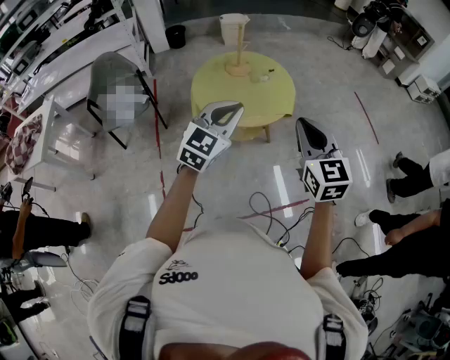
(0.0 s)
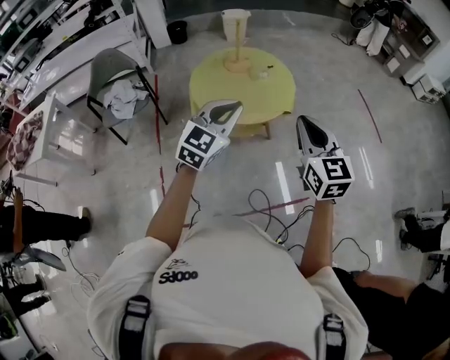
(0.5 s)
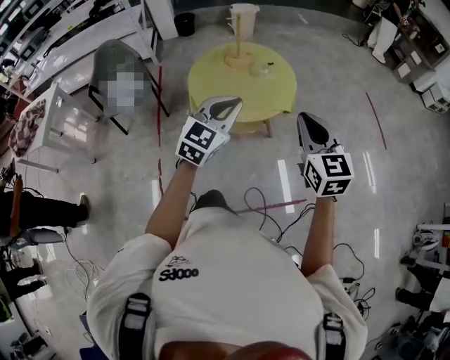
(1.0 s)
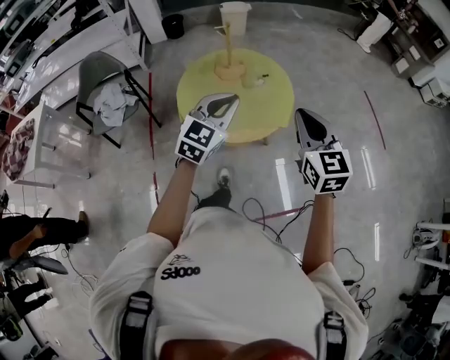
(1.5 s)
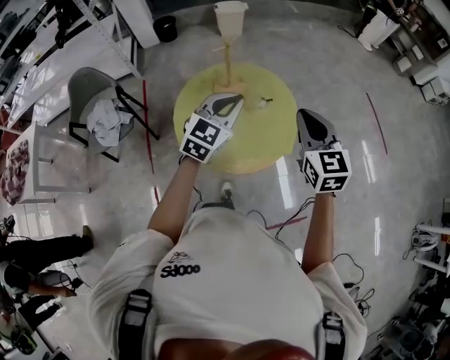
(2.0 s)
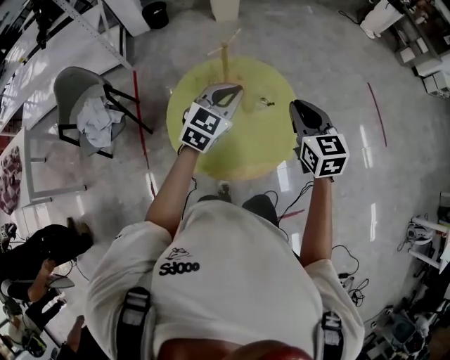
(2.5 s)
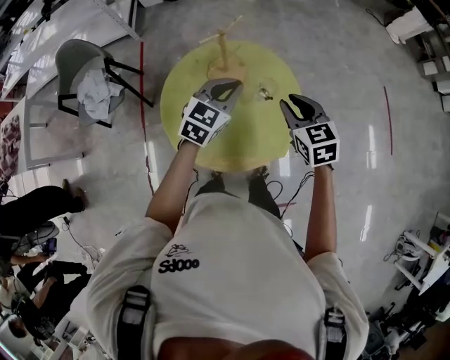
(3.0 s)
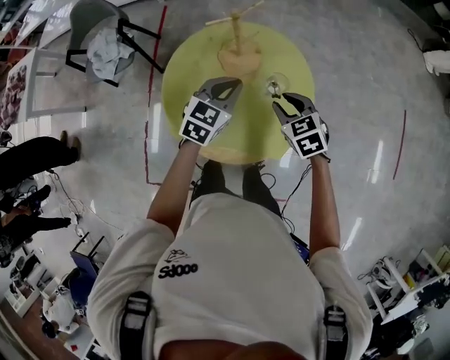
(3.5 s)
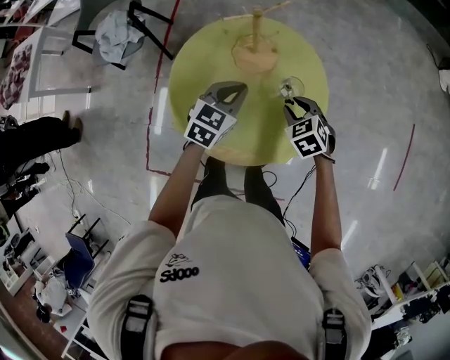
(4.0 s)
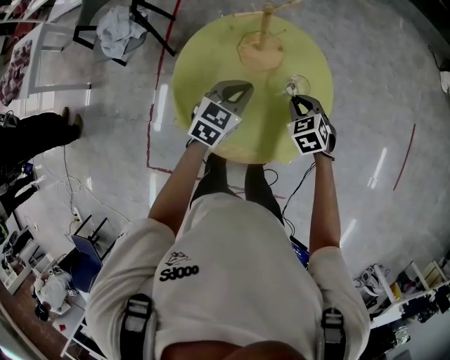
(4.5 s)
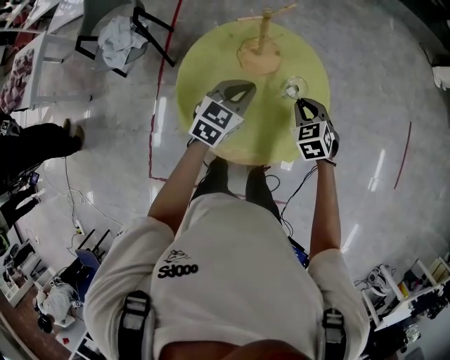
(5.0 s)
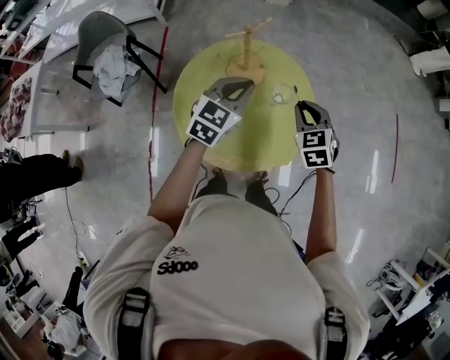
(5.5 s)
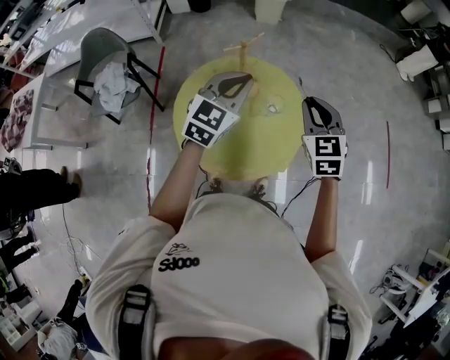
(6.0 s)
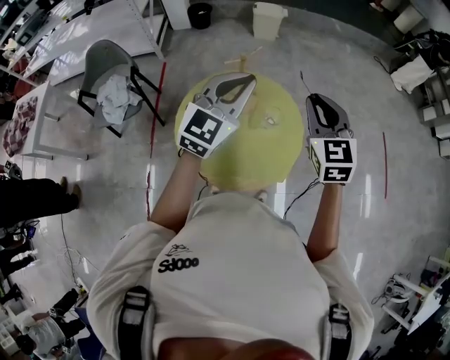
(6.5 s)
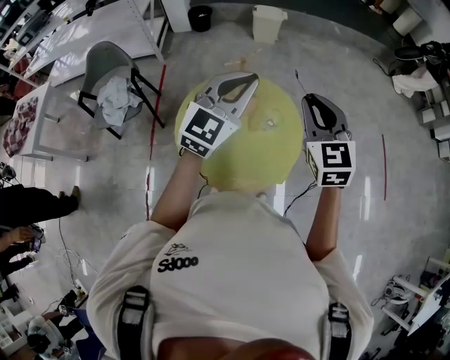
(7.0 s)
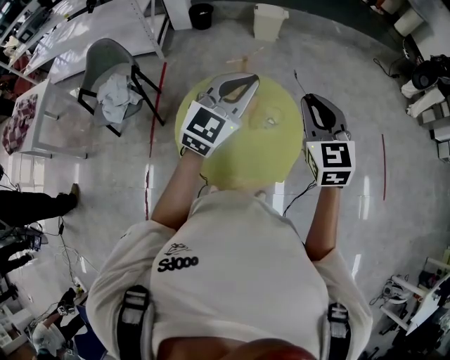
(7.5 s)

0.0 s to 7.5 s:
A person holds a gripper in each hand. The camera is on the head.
0.0 to 2.0 s: The two grippers go approximately 35 cm forward.
2.0 to 4.0 s: The right gripper goes about 30 cm downward, tips its fingers downward by some 40 degrees, and opens. The left gripper moves downward, approximately 20 cm, and turns by roughly 40 degrees.
4.0 to 5.5 s: The grippers both shift upward by some 15 cm. The right gripper rotates approximately 30 degrees.
5.5 to 7.5 s: Both grippers move upward, about 20 cm. The right gripper changes its angle by some 20 degrees. The left gripper rotates some 20 degrees.

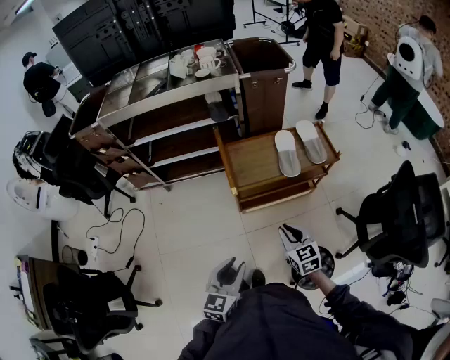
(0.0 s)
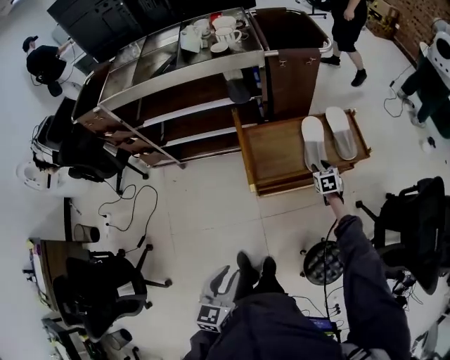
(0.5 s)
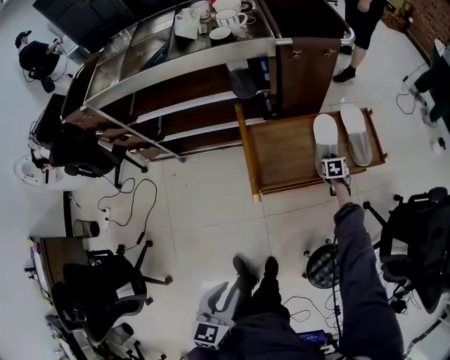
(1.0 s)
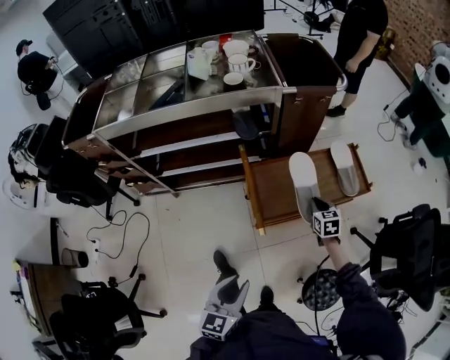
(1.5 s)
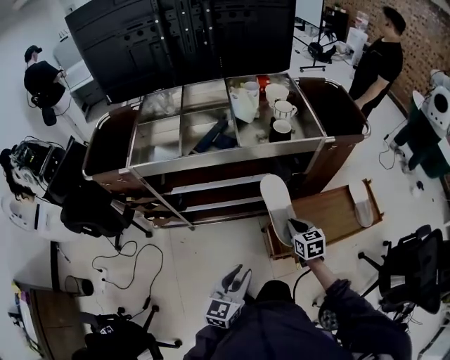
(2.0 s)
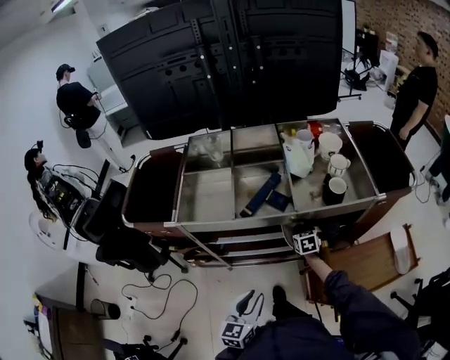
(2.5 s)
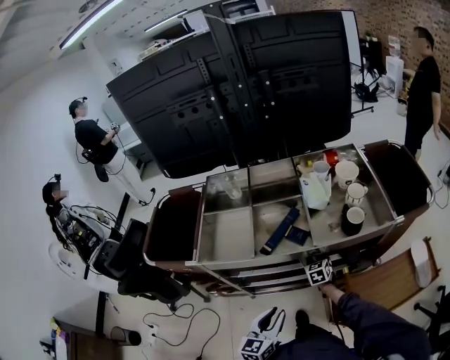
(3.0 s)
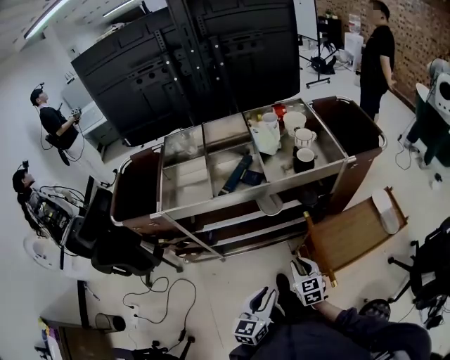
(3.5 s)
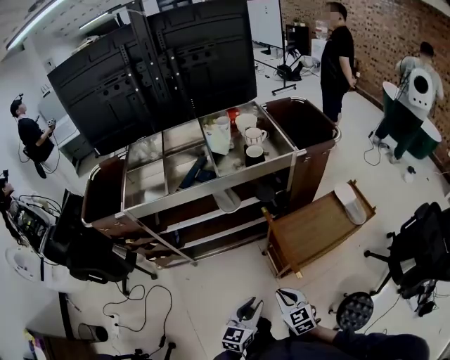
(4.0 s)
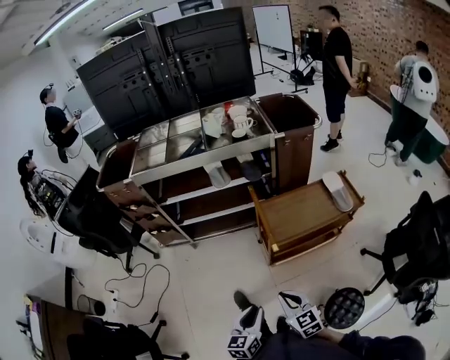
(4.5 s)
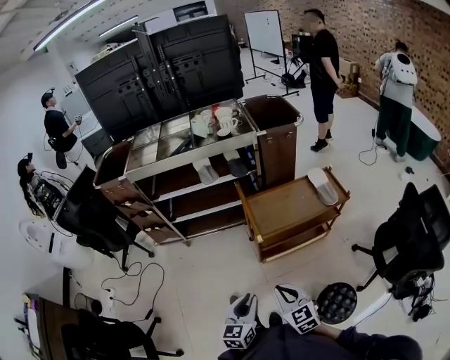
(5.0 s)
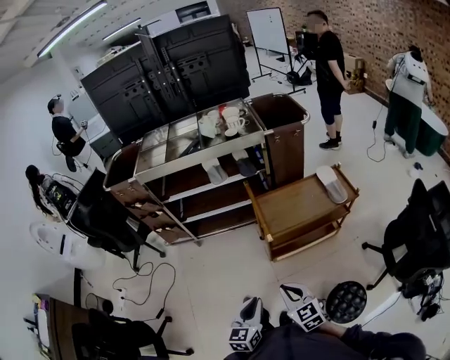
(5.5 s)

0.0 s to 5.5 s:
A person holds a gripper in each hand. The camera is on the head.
0.0 to 2.0 s: The pair of grippers is taken forward and to the left, approximately 40 cm. The right gripper opens, then closes once more.
2.0 to 3.5 s: The right gripper goes about 10 cm to the left, and travels forward and back again, about 25 cm each way. Meanwhile the left gripper heads to the left, covering roughly 5 cm, and reaches some 20 cm forward, then returns.
3.5 to 5.5 s: The pair of grippers is taken backward and to the right, some 40 cm.

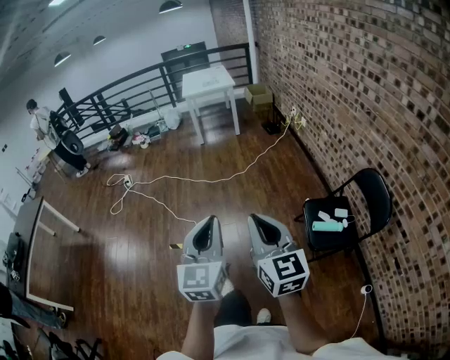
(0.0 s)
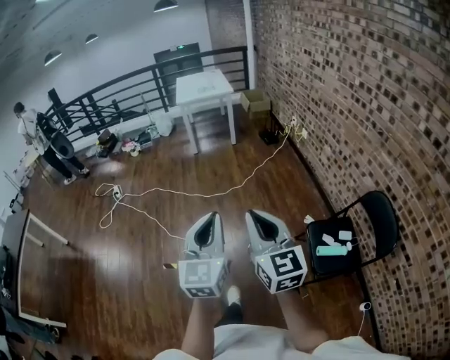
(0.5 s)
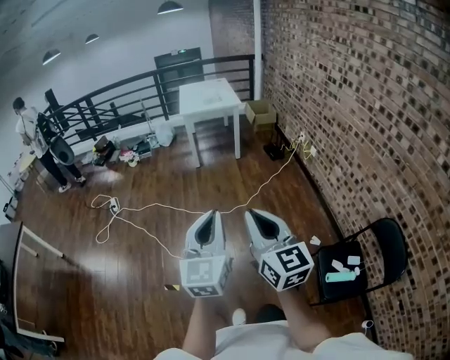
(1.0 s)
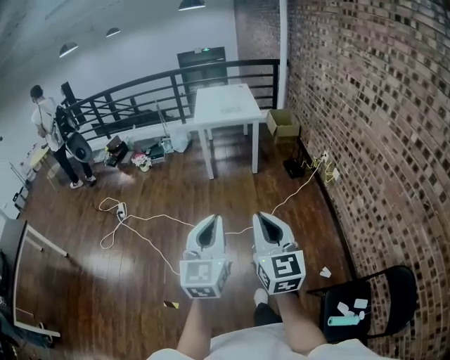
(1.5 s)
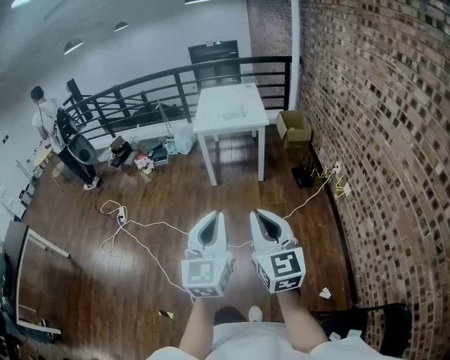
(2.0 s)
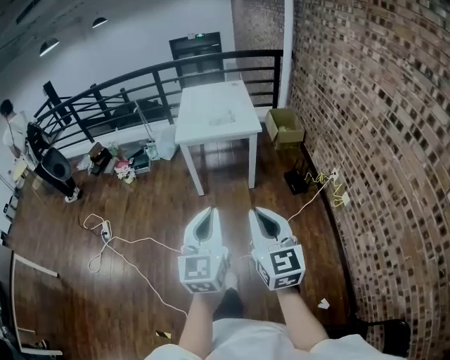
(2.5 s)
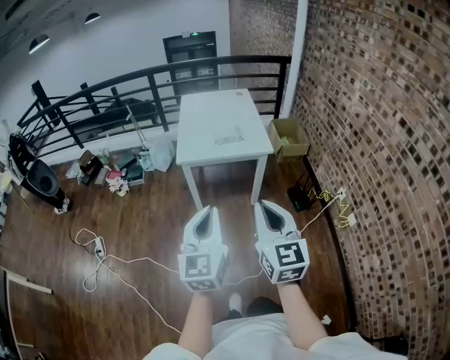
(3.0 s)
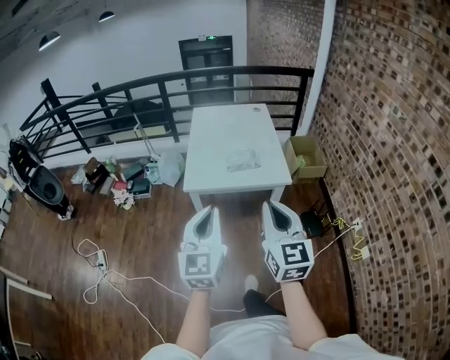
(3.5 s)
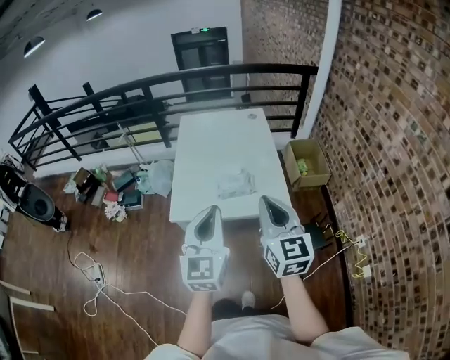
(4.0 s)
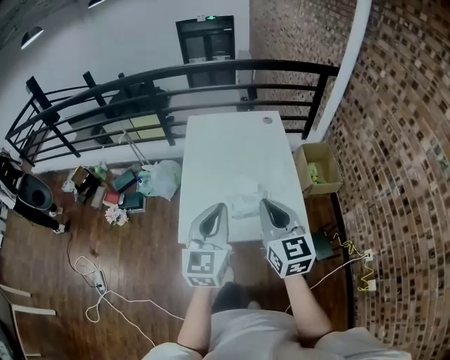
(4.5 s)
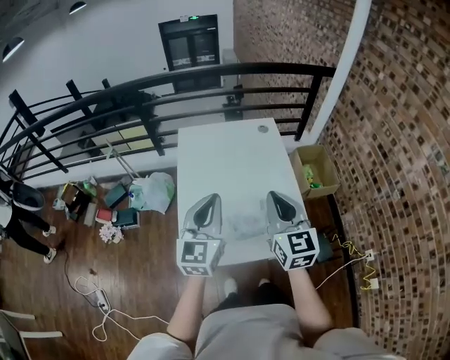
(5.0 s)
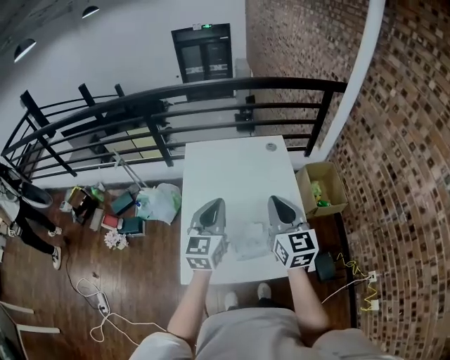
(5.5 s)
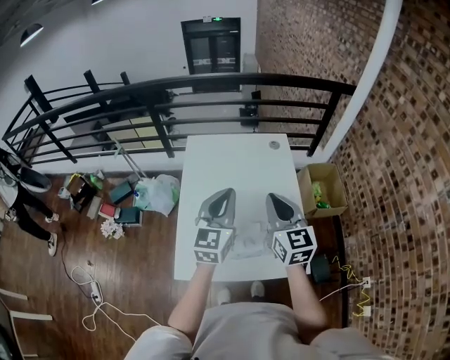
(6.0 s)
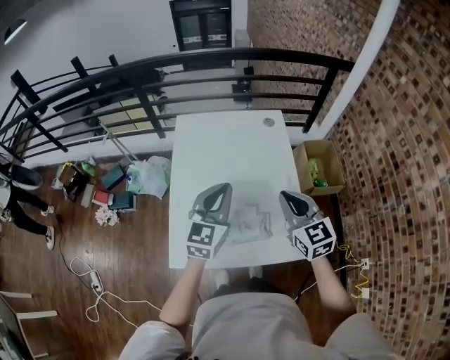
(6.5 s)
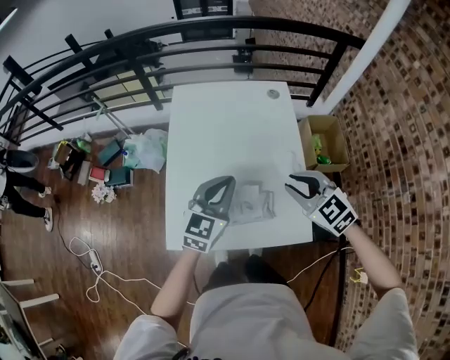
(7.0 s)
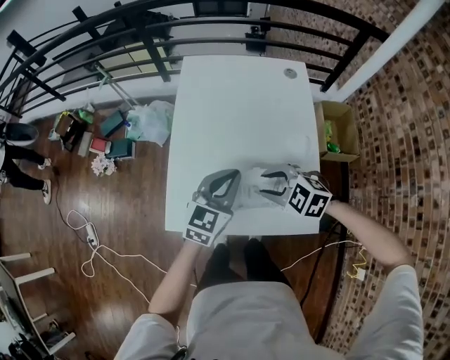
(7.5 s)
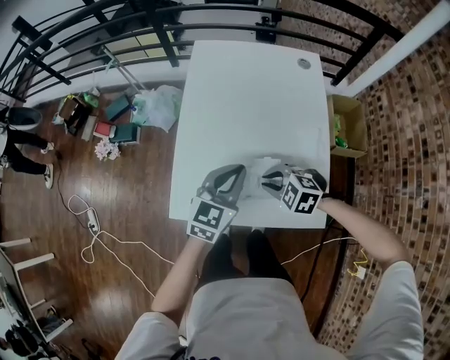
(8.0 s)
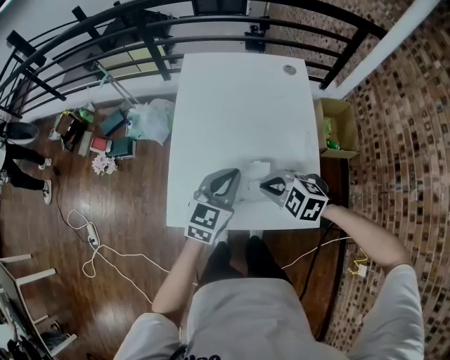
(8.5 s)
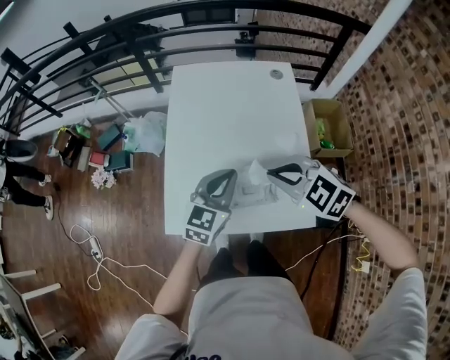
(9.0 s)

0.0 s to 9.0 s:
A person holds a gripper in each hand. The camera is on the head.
0.0 to 2.0 s: Both grippers are carried forward, about 80 cm.
2.0 to 4.5 s: Both grippers are carried forward, about 1 m.
4.5 to 7.0 s: The right gripper goes some 20 cm forward, downward and to the right, and swivels approximately 50 degrees. The left gripper shifts about 25 cm forward and downward.
7.0 to 9.0 s: The right gripper heads to the left, covering about 10 cm, and moves some 15 cm downward and comes back.

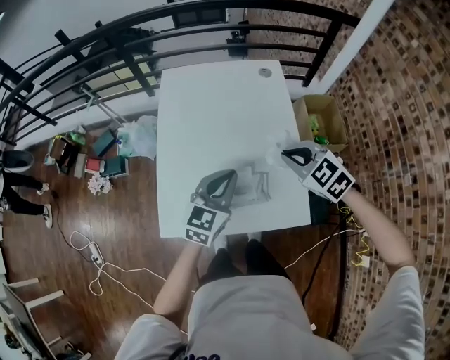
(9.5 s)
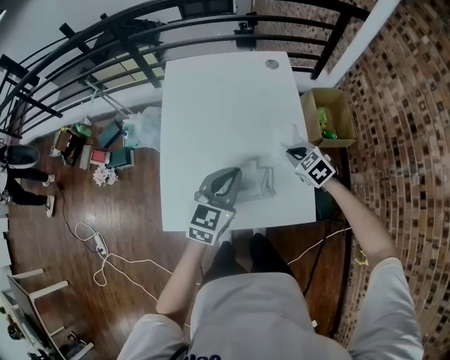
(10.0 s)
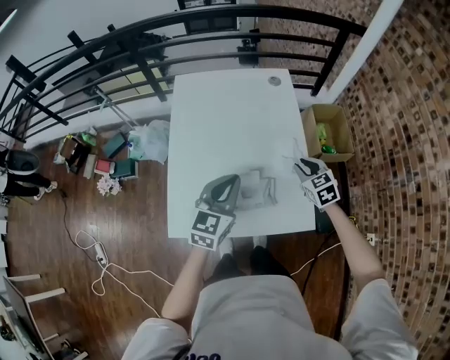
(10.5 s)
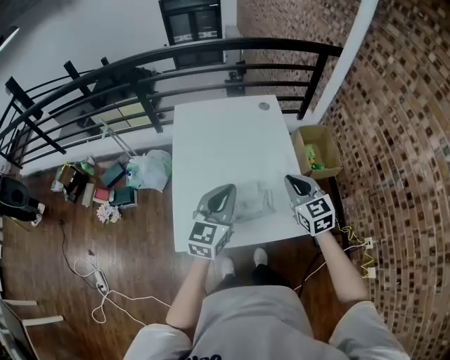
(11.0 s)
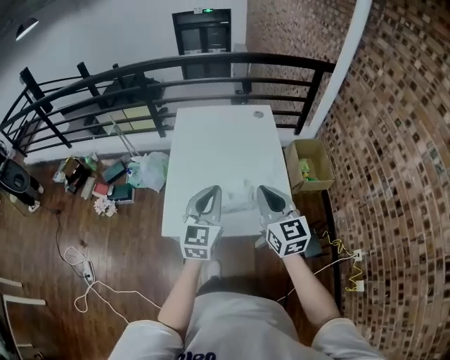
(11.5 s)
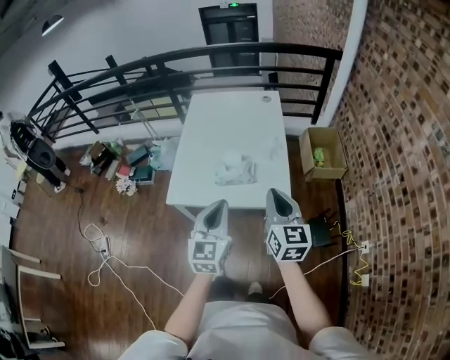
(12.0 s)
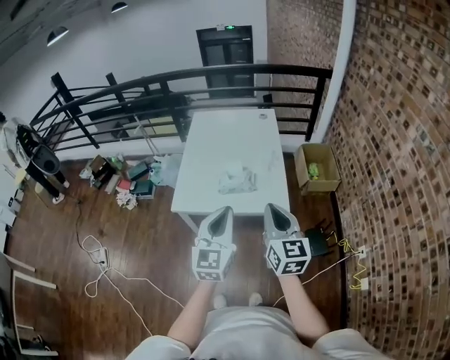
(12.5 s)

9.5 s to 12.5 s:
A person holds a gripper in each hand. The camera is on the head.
9.5 to 11.0 s: The left gripper goes approximately 10 cm upward. Meanwhile the right gripper reaches about 15 cm downward, then returns, swivels some 40 degrees, and opens and closes again.
11.0 to 12.5 s: The grippers both shift backward by approximately 30 cm. The right gripper turns by about 20 degrees, while the left gripper swivels some 20 degrees.

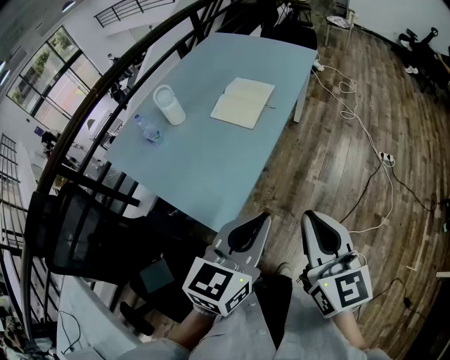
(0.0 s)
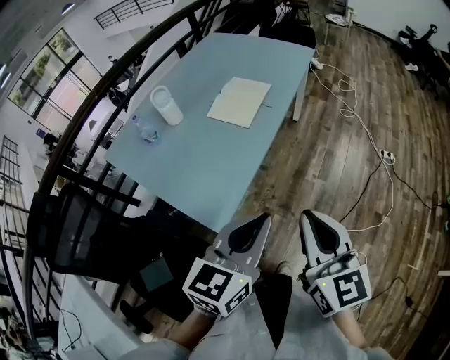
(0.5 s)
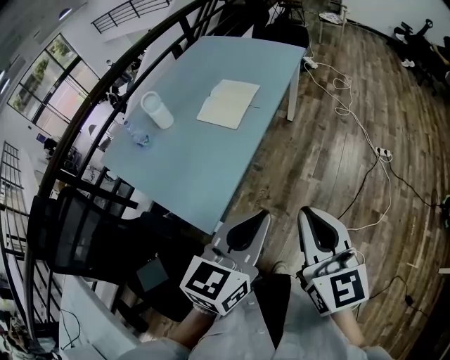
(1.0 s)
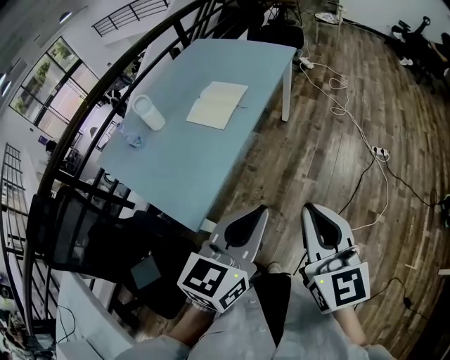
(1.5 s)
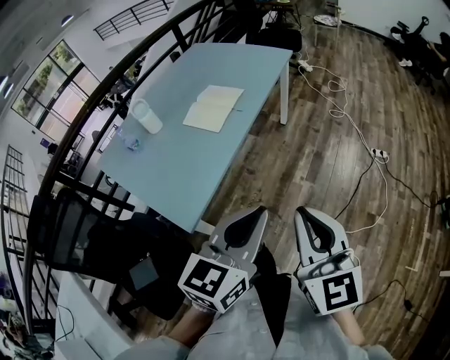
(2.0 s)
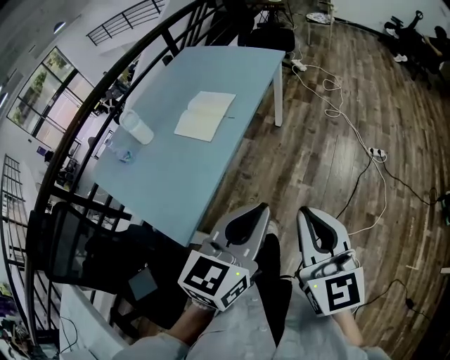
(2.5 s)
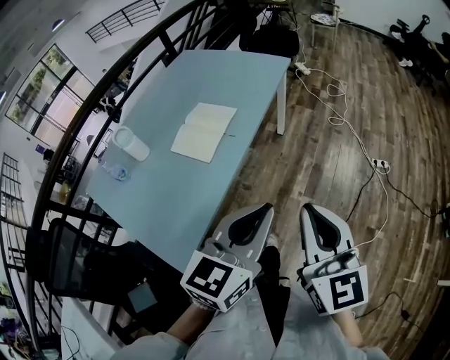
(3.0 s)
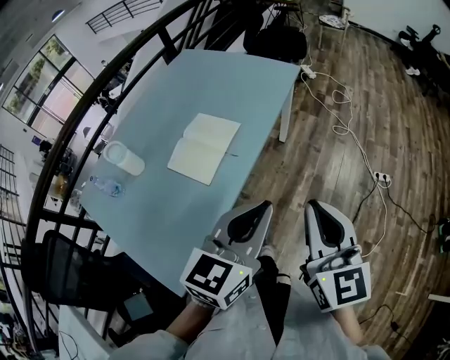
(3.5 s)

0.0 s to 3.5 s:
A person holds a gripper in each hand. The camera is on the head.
0.0 to 2.0 s: Both grippers move to the right, approximately 15 cm.
2.0 to 3.5 s: Both grippers move forward, about 30 cm.
